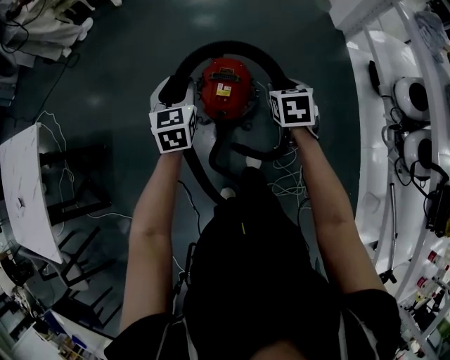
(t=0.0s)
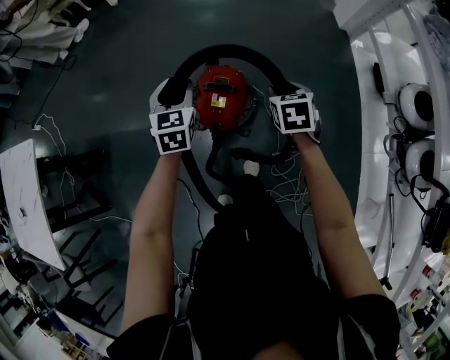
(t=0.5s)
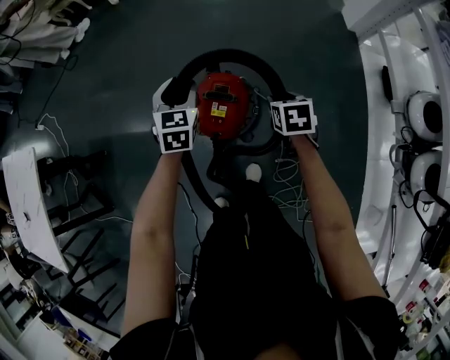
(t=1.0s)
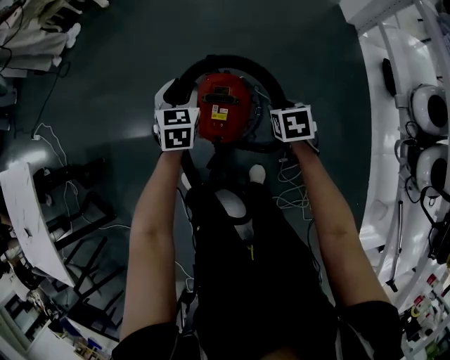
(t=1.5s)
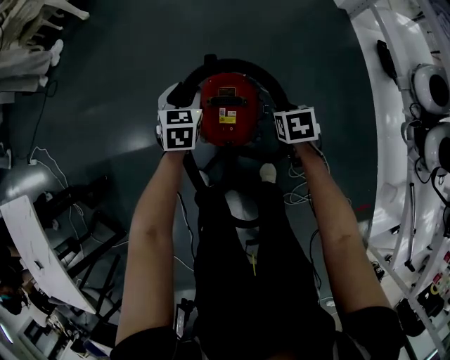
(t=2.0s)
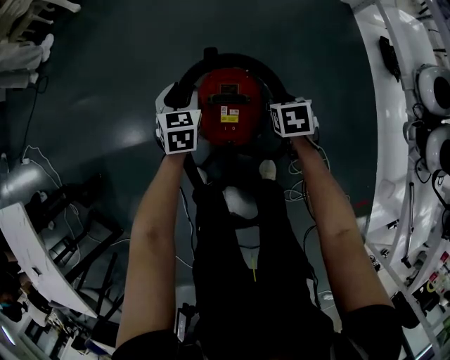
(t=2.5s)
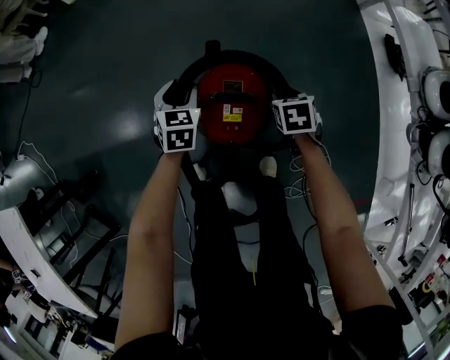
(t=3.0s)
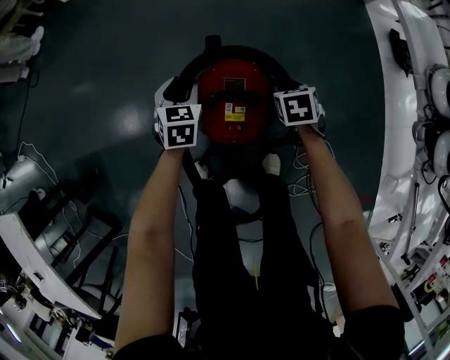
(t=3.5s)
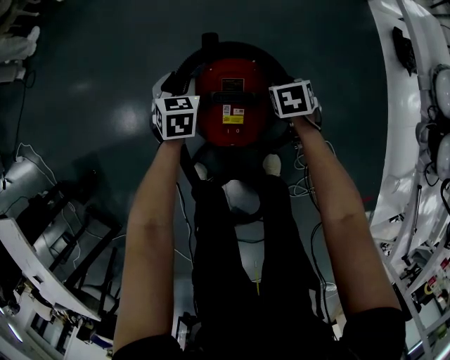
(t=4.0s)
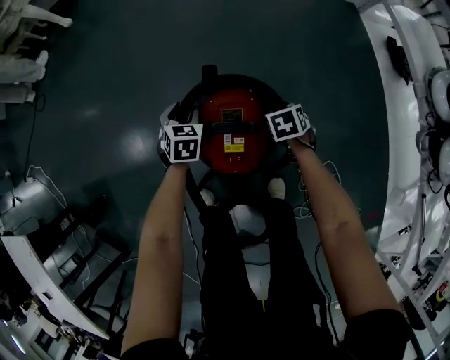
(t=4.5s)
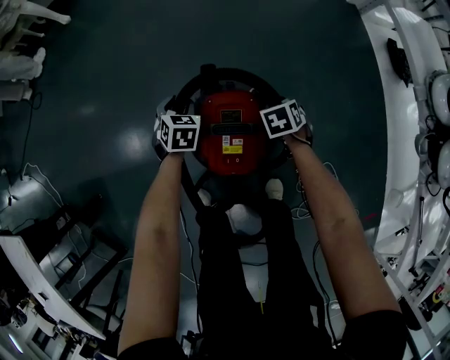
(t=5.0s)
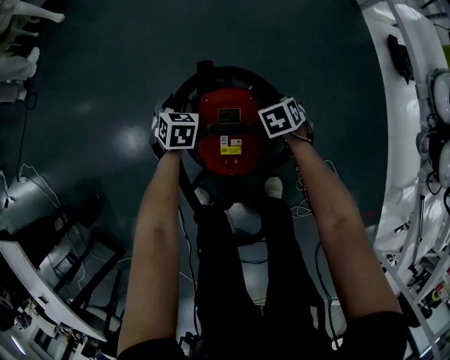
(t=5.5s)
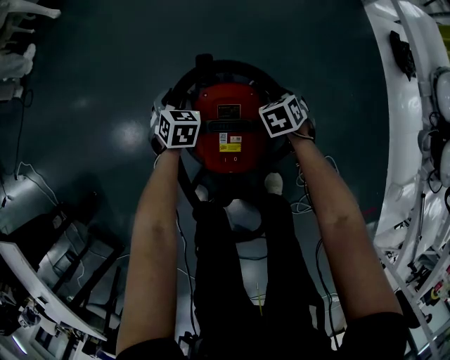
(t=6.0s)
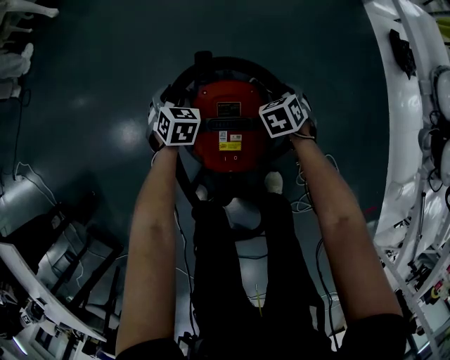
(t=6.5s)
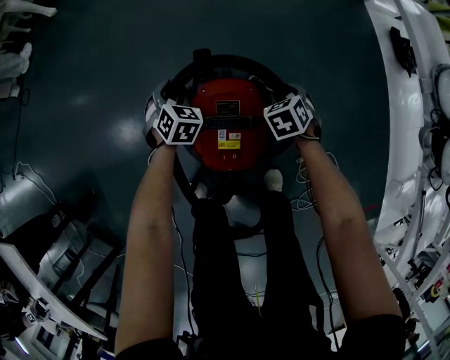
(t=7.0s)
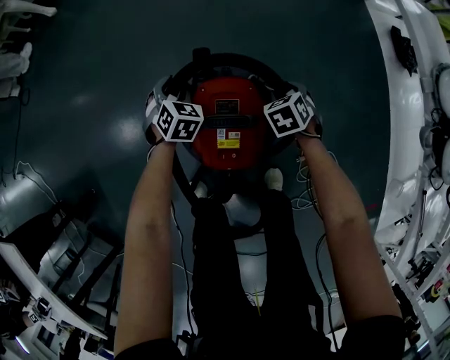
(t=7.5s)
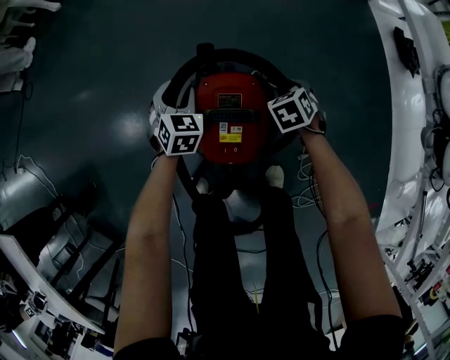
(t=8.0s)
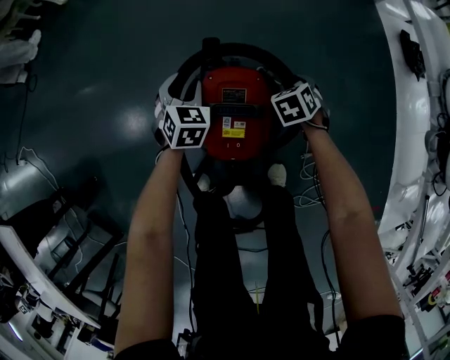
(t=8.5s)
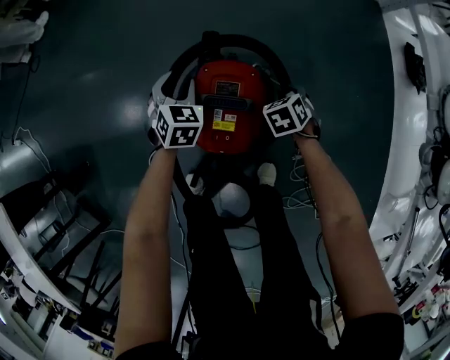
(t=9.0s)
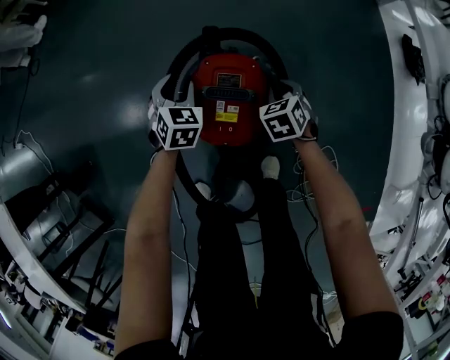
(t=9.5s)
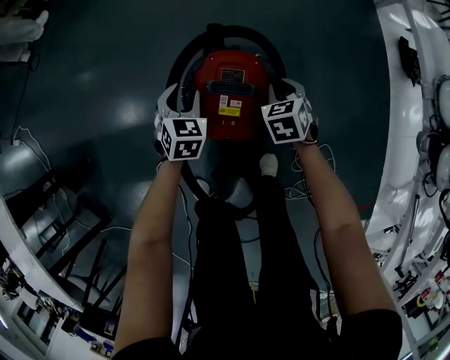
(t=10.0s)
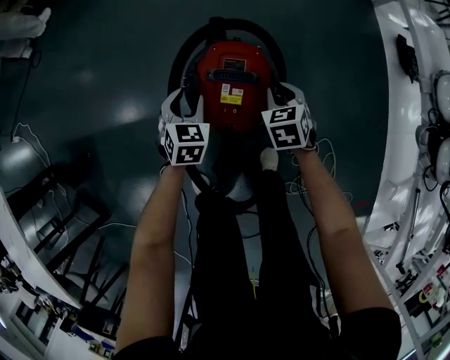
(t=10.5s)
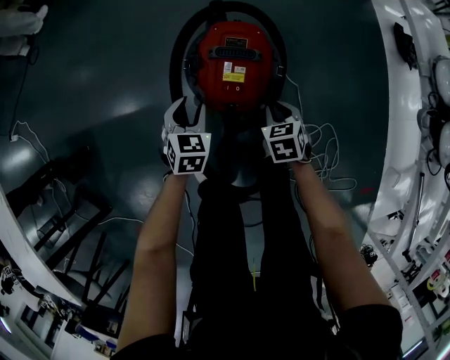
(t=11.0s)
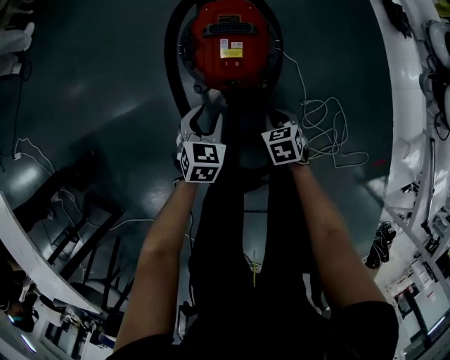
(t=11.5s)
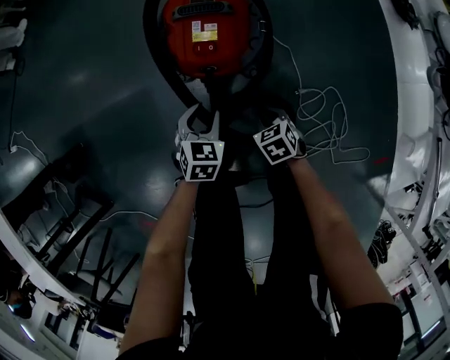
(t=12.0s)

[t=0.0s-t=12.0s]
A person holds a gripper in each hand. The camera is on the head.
t=0.0s to t=2.0s: The two grippers go about 25 cm downward and forward. The right gripper rotates about 20 degrees; the left gripper rotates some 20 degrees.
t=2.0s to t=4.0s: The left gripper shifts approximately 15 cm downward, while the right gripper travels downward and forward by about 15 cm.
t=4.0s to t=6.0s: The two grippers go approximately 5 cm downward.
t=6.0s to t=8.0s: There are only small adjustments of the grippers.
t=8.0s to t=10.0s: The left gripper goes approximately 10 cm backward; the right gripper moves upward, some 5 cm.
t=10.0s to t=12.0s: The two grippers go some 30 cm backward.

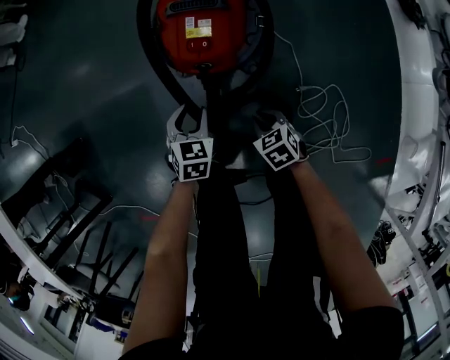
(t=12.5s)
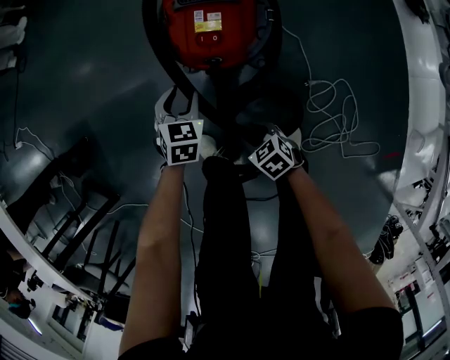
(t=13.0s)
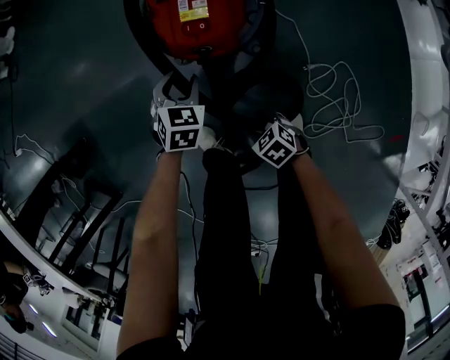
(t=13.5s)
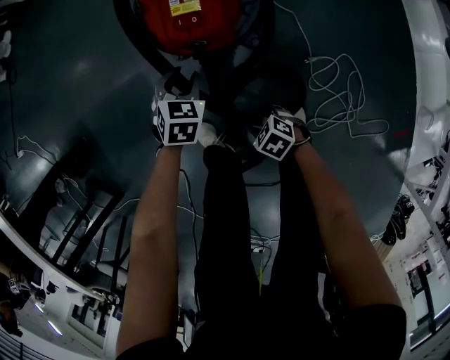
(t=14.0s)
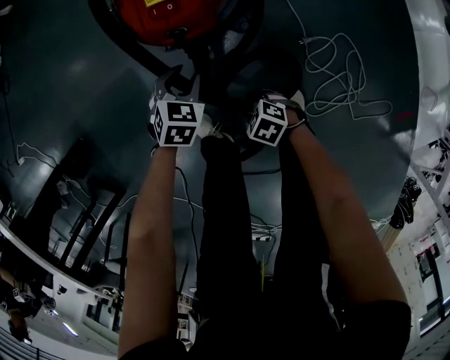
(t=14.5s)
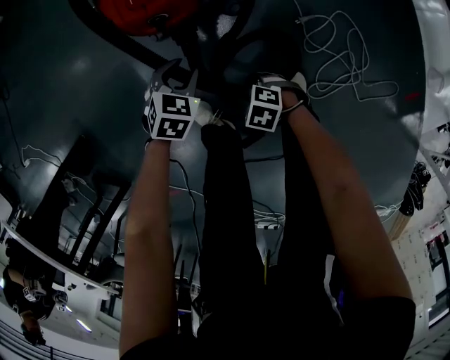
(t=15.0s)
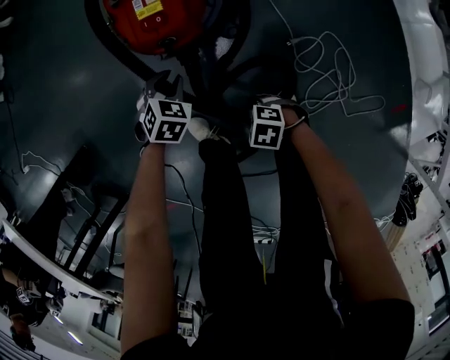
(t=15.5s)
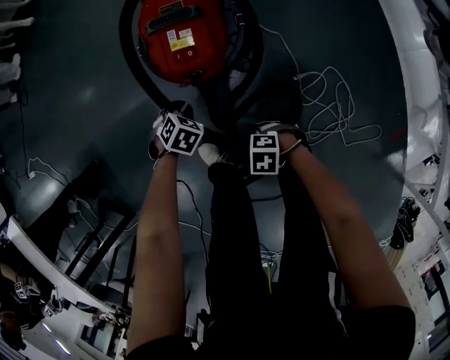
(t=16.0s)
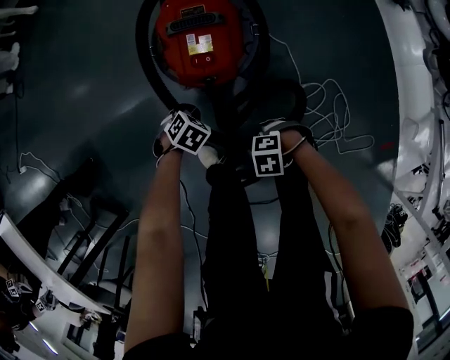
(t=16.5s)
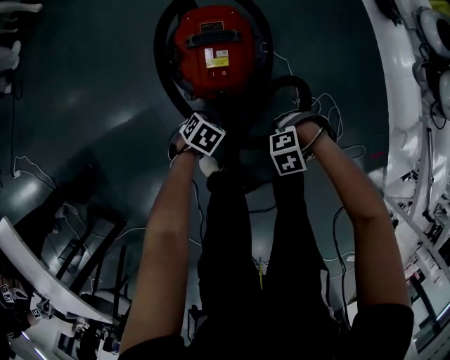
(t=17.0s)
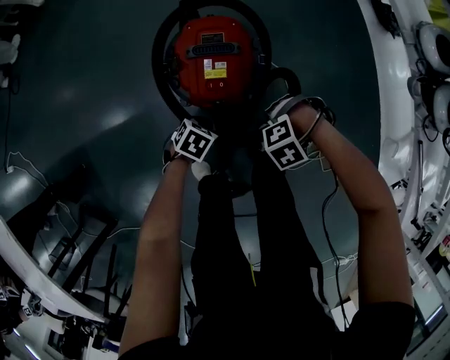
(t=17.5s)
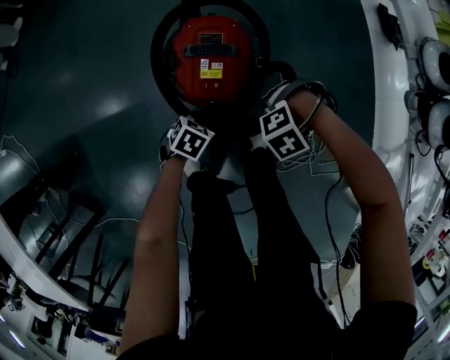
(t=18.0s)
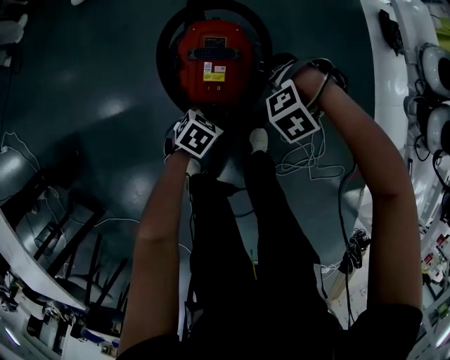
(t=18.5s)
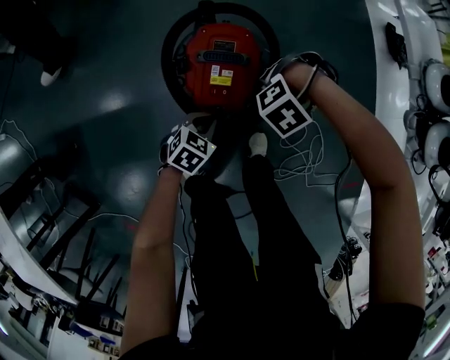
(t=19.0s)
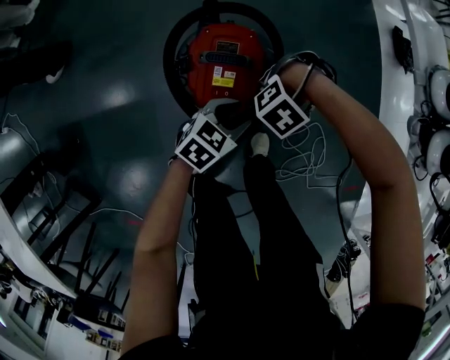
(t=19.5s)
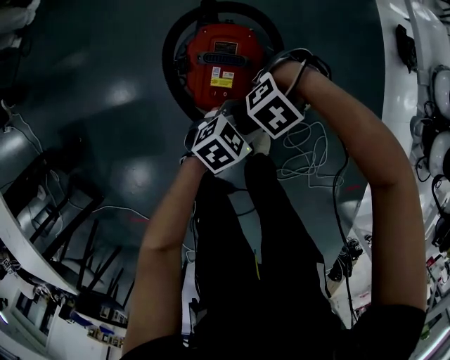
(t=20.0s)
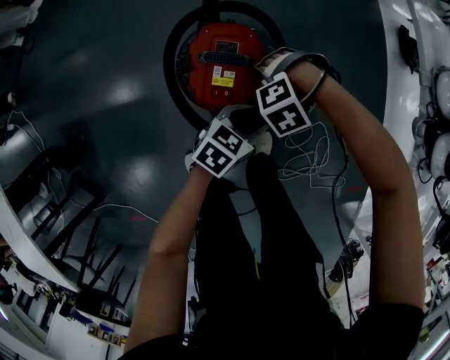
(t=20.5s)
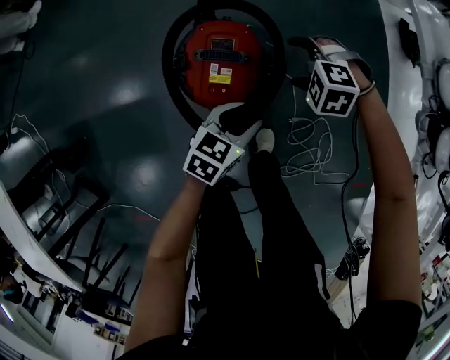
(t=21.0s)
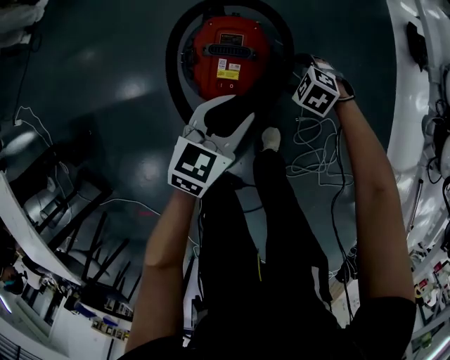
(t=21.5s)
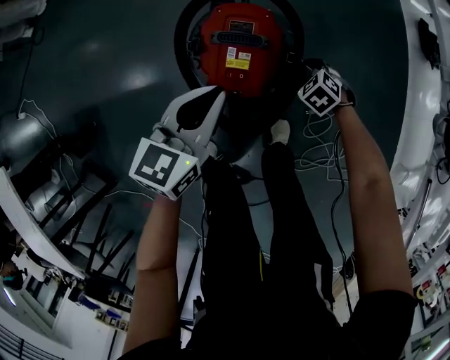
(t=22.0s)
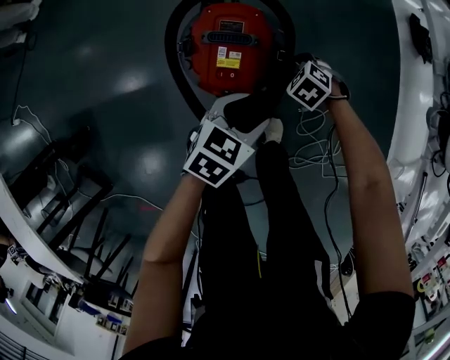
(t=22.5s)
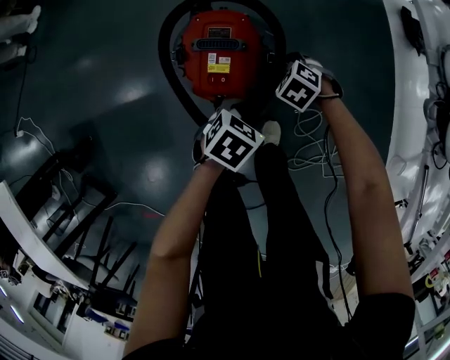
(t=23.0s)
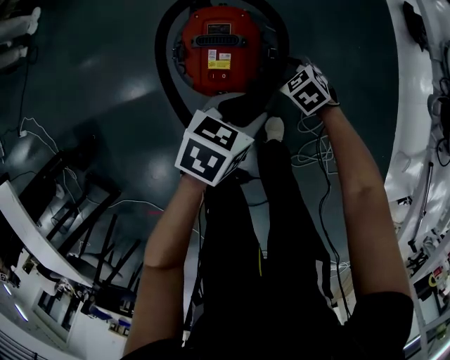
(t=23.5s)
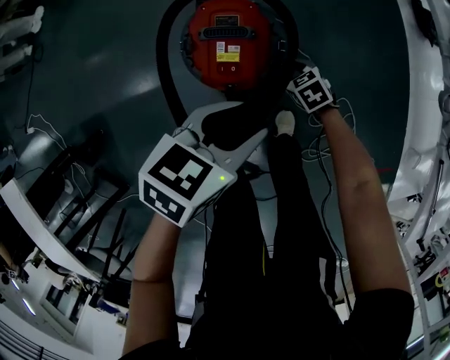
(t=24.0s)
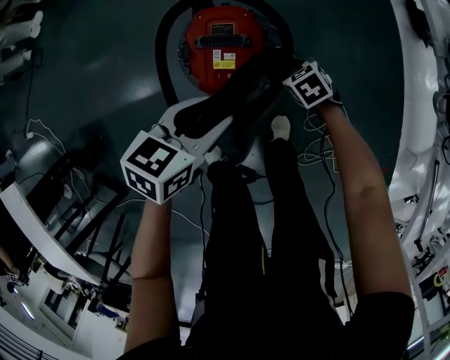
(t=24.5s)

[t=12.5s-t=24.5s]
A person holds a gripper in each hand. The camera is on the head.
t=12.5s to t=14.5s: The left gripper heads downward, covering about 5 cm, and rotates approximately 20 degrees. The right gripper heads to the left, downward and backward, covering some 15 cm, rotates roughly 30 degrees, and opens.
t=14.5s to t=16.5s: The left gripper shifts by roughly 5 cm, changes its angle by about 20 degrees, and closes up. Meanwhile the right gripper is displaced upward by roughly 10 cm, and turns by approximately 40 degrees.
t=16.5s to t=18.5s: The left gripper ends up some 15 cm from where it was, and rotates about 20 degrees; the right gripper ends up about 30 cm from where it was, and swivels approximately 50 degrees.
t=18.5s to t=20.5s: The right gripper changes place by some 10 cm, and opens; the left gripper ends up roughly 15 cm from where it was, changes its angle by about 20 degrees, and opens its fingers.
t=20.5s to t=22.5s: The left gripper travels upward and back again, approximately 10 cm each way, and closes, then opens again, while the right gripper heads downward, covering some 10 cm, rotates around the line of its fingers by about 60 degrees, clockwise from behind, and closes up.
t=22.5s to t=24.5s: The left gripper travels upward by roughly 10 cm. The right gripper rotates about 30 degrees.

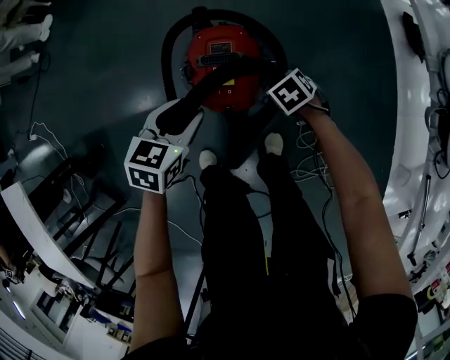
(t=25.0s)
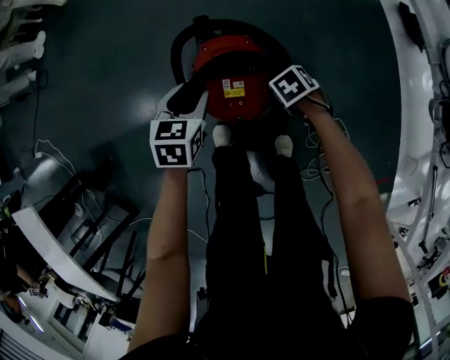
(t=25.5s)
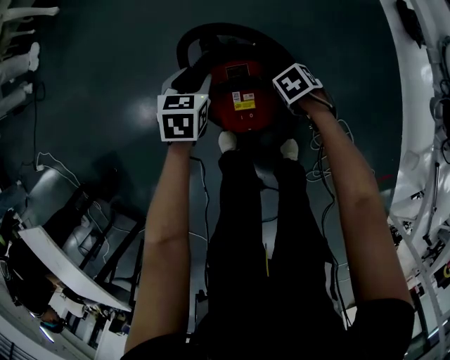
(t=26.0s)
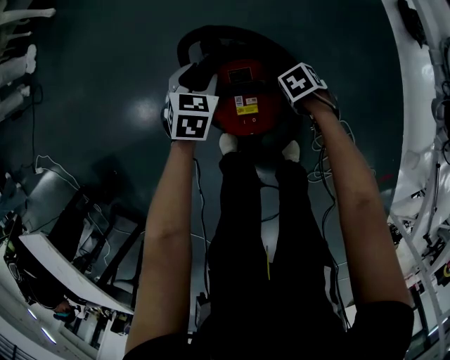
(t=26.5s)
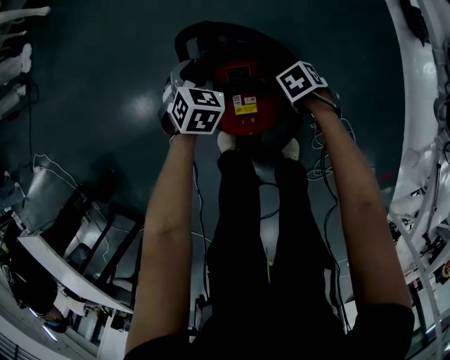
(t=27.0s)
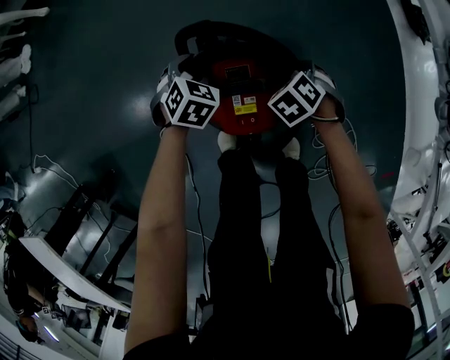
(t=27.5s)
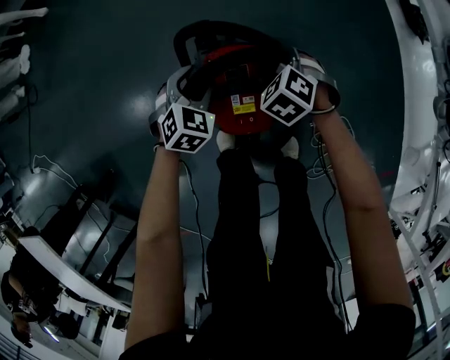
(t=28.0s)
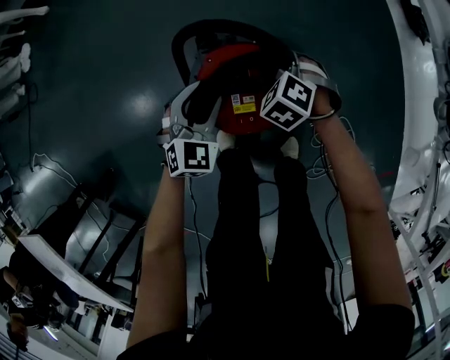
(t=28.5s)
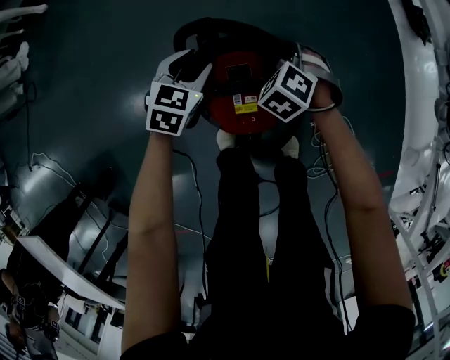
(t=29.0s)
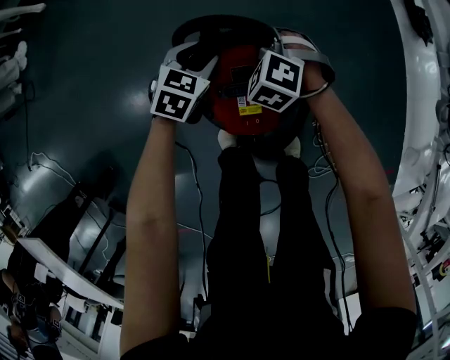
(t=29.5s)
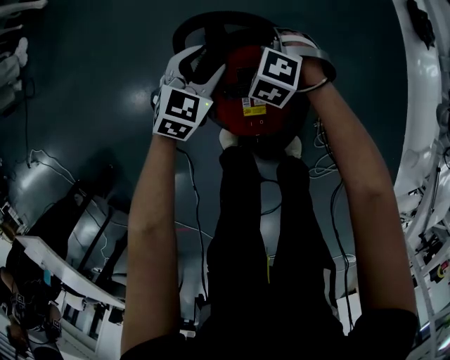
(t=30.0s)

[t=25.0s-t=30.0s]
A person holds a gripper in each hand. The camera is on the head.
t=25.0s to t=27.5s: The right gripper changes place by roughly 10 cm; the left gripper moves approximately 25 cm, and rotates roughly 30 degrees.
t=27.5s to t=30.0s: The left gripper swivels some 30 degrees. The right gripper shifts by about 15 cm, changes its angle by roughly 30 degrees, and closes its fingers.
